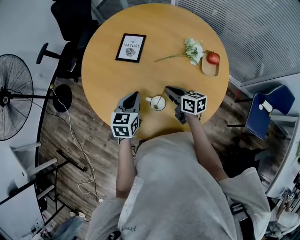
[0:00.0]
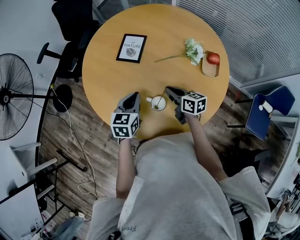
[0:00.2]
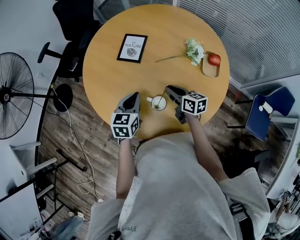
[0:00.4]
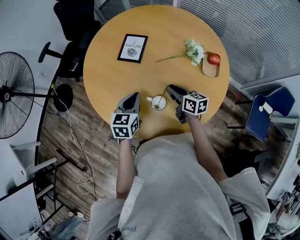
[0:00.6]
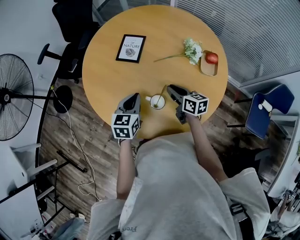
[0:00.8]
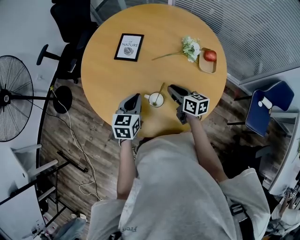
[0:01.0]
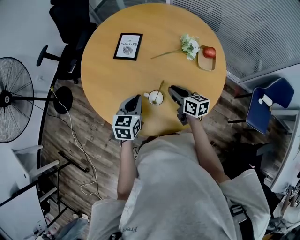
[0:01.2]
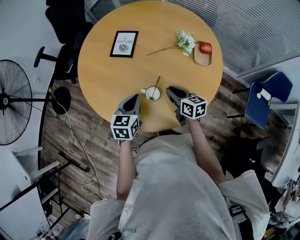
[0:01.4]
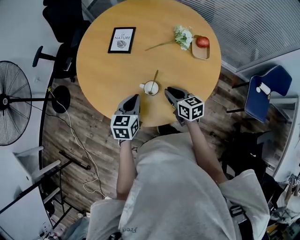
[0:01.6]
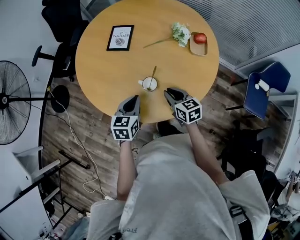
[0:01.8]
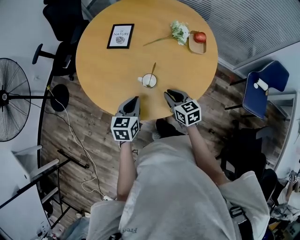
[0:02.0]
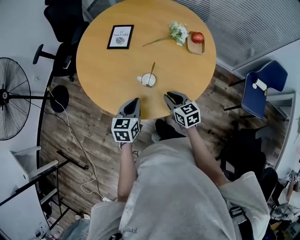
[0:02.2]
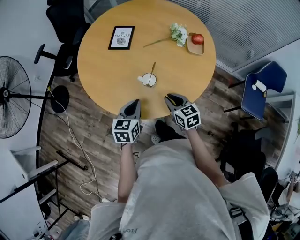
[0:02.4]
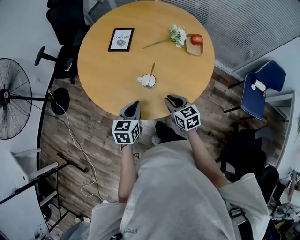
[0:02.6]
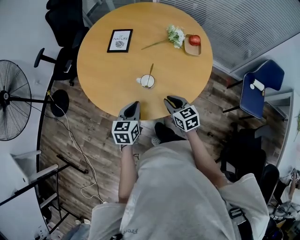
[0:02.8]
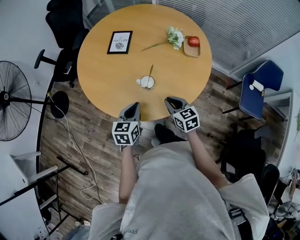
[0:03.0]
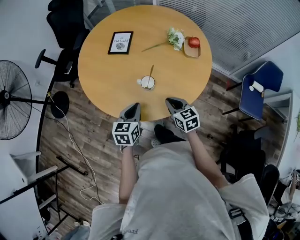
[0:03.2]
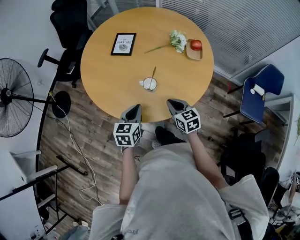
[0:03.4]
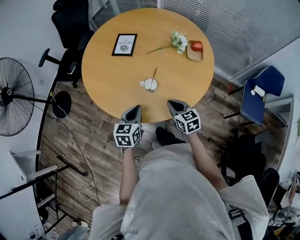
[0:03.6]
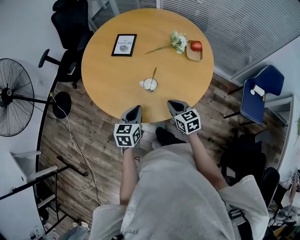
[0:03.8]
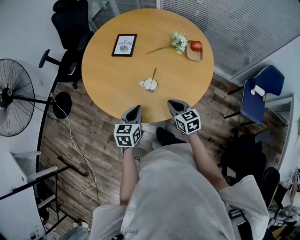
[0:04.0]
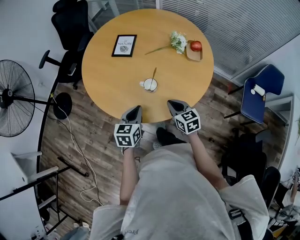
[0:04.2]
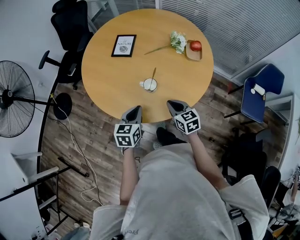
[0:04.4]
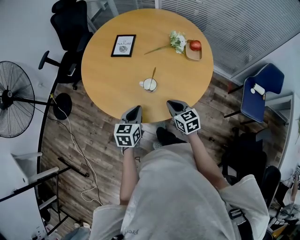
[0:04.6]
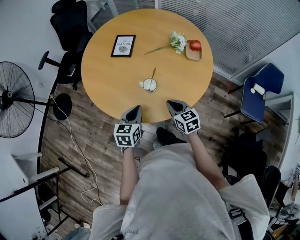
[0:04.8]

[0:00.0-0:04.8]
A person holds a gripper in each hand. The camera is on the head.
0:00.0 to 0:01.6: The grippers both shift backward by about 10 cm.
0:01.6 to 0:03.2: Both grippers travel together backward, about 10 cm.
0:03.2 to 0:04.8: Both grippers stay put.

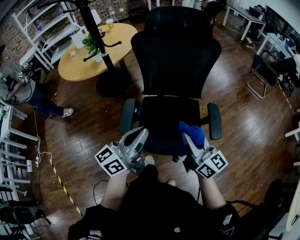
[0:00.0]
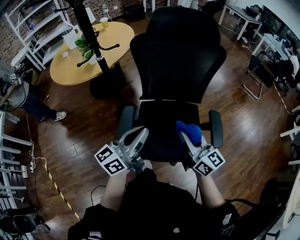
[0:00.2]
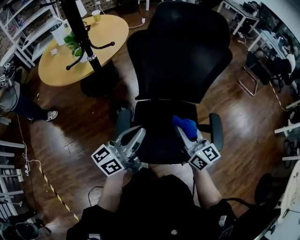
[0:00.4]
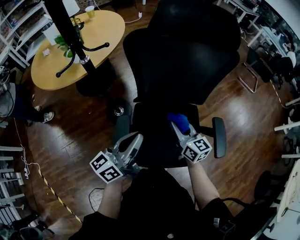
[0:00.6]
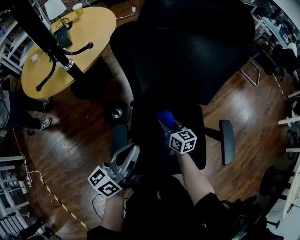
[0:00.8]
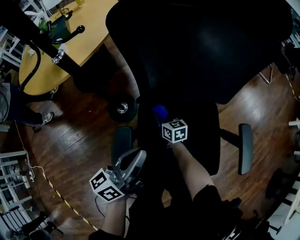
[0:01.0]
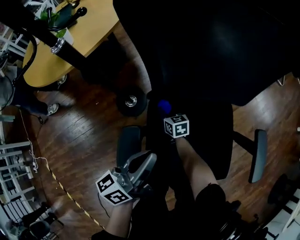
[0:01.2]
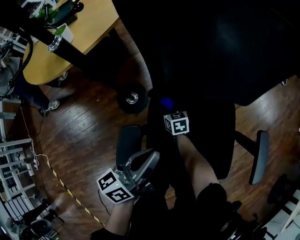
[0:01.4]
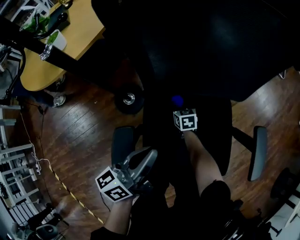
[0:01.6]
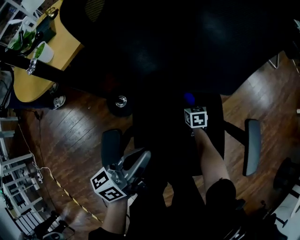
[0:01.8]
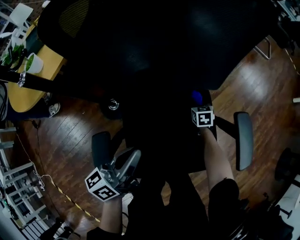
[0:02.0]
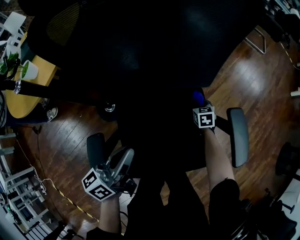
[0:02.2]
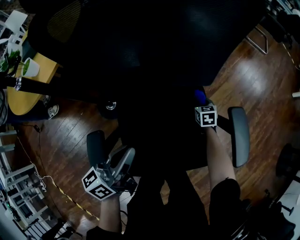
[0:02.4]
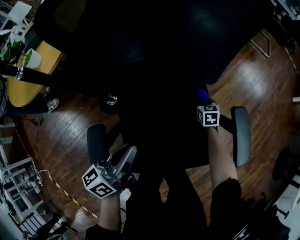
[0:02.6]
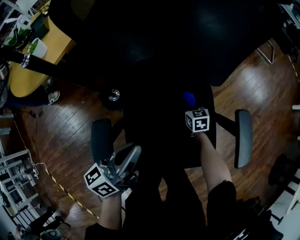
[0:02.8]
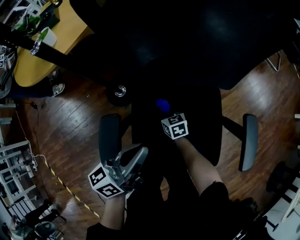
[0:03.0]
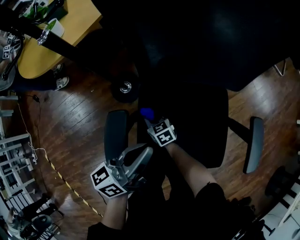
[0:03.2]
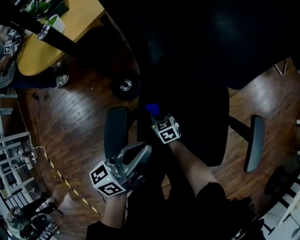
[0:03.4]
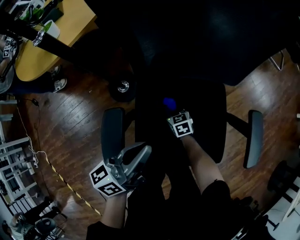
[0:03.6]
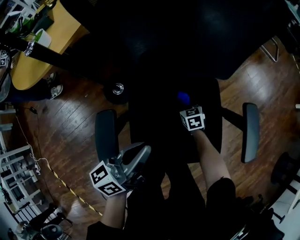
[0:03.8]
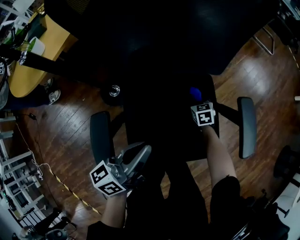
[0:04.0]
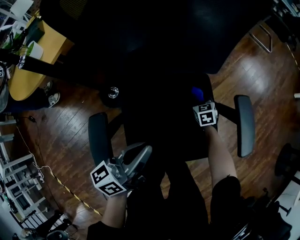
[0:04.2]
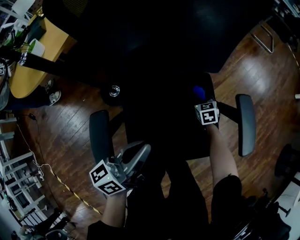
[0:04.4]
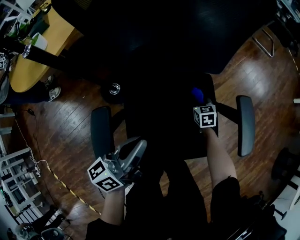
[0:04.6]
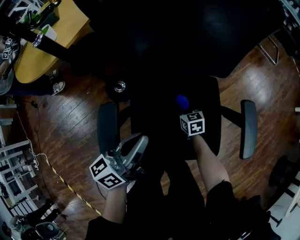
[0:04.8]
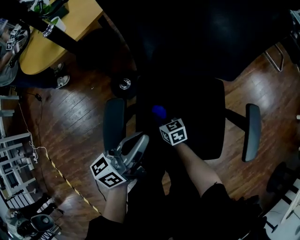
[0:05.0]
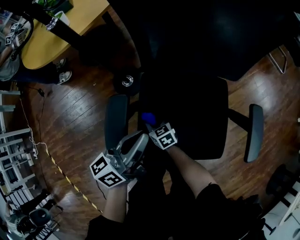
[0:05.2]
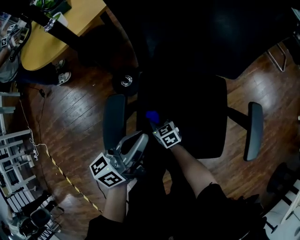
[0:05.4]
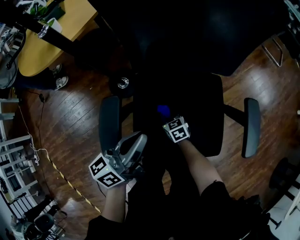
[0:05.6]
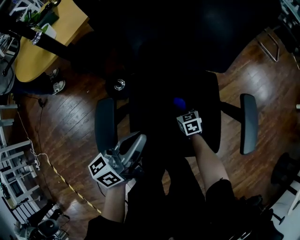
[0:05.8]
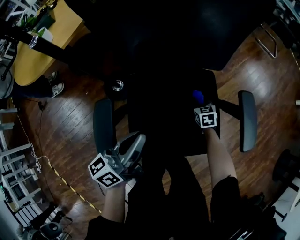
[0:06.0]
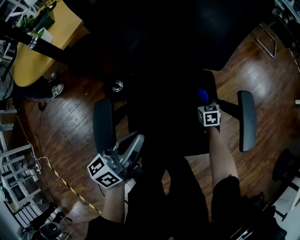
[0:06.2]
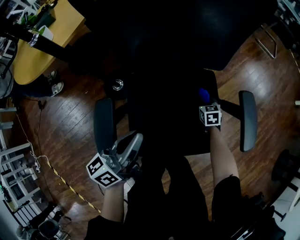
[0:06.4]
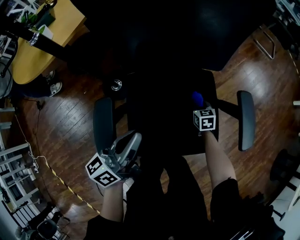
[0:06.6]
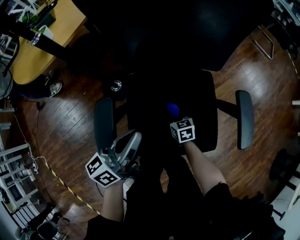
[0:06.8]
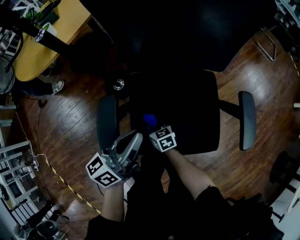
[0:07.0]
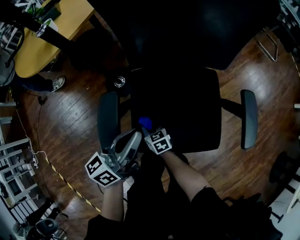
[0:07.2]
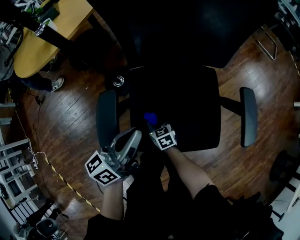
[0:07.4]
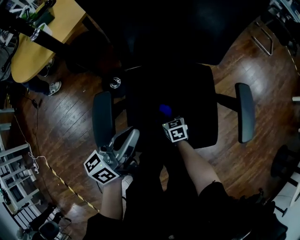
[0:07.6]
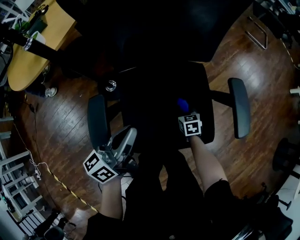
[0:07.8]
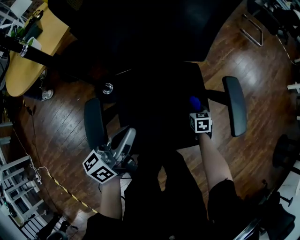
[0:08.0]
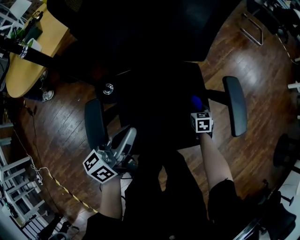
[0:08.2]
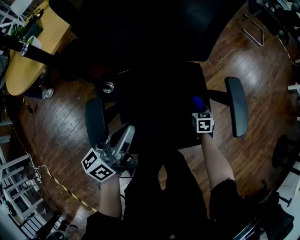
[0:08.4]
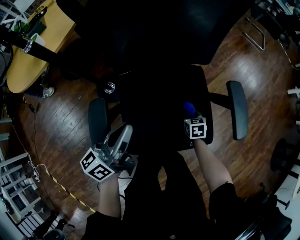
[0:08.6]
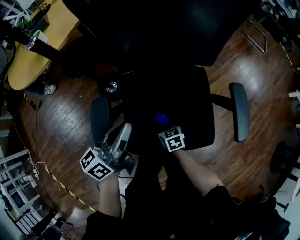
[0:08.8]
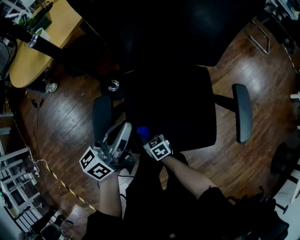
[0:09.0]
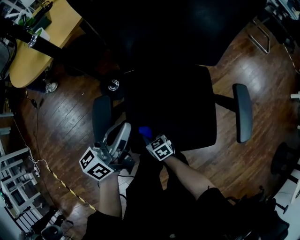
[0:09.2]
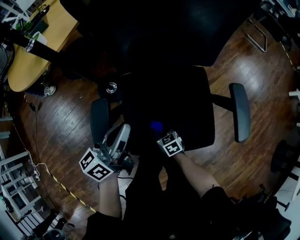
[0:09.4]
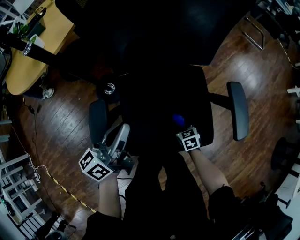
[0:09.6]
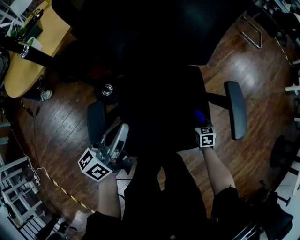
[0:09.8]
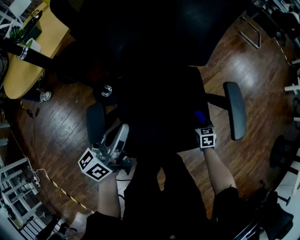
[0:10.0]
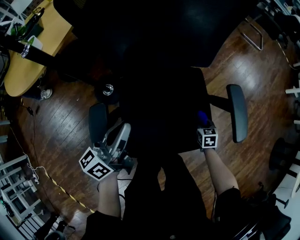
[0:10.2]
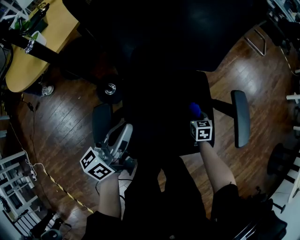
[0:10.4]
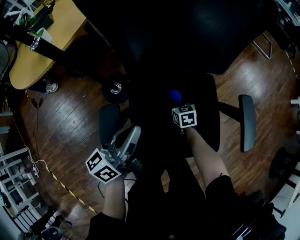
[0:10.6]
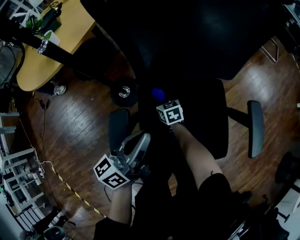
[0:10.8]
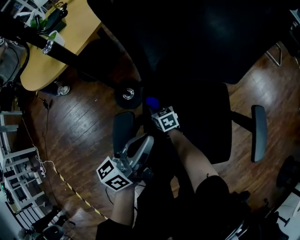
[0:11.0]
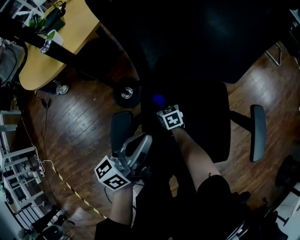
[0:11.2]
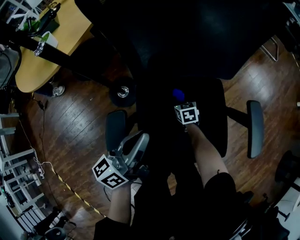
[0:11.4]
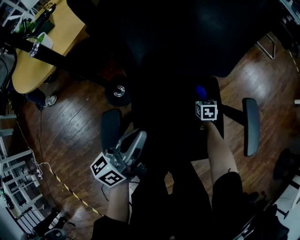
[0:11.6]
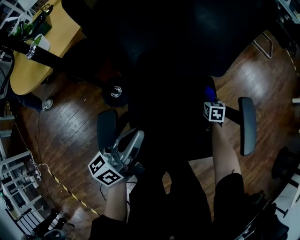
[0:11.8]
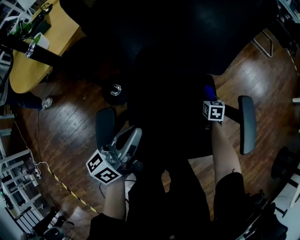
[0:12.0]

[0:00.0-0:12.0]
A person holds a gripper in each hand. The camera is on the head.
0:00.0 to 0:01.6: The right gripper goes some 60 cm downward and forward, and tilts its fingers about 50 degrees downward, while the left gripper heads forward and downward, covering approximately 30 cm, and rotates roughly 20 degrees.
0:01.6 to 0:03.0: The left gripper shifts by approximately 5 cm. The right gripper travels backward by some 10 cm, and reaches about 30 cm to the right, then returns.
0:03.0 to 0:04.4: The right gripper shifts by approximately 25 cm, and rotates some 20 degrees.
0:06.0 to 0:07.6: The right gripper goes about 20 cm to the left and backward.
0:09.0 to 0:10.4: The right gripper moves some 30 cm, and rotates some 30 degrees.

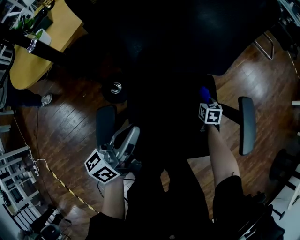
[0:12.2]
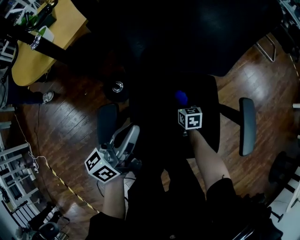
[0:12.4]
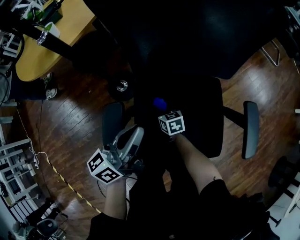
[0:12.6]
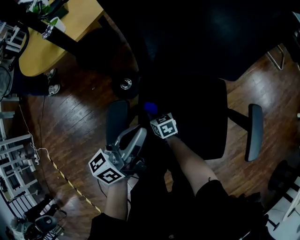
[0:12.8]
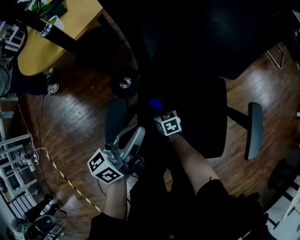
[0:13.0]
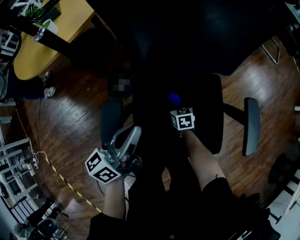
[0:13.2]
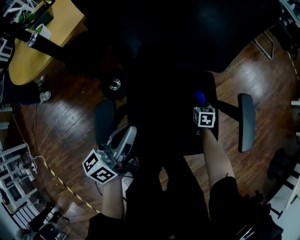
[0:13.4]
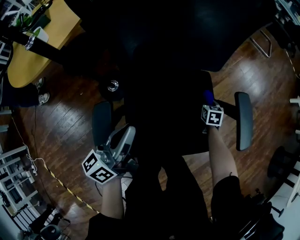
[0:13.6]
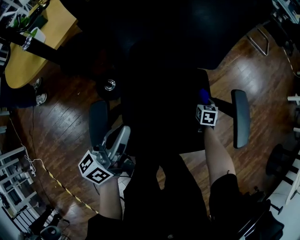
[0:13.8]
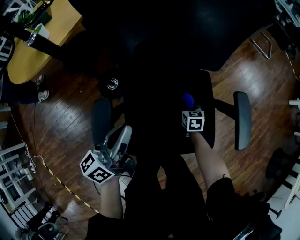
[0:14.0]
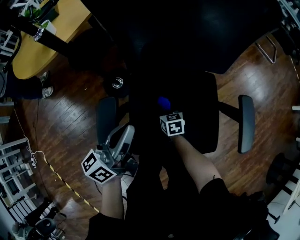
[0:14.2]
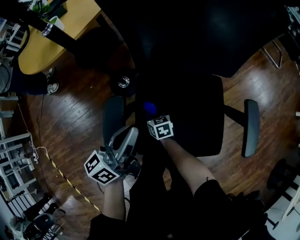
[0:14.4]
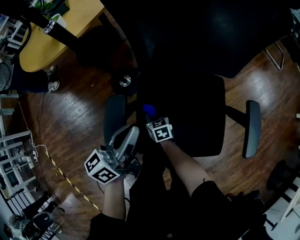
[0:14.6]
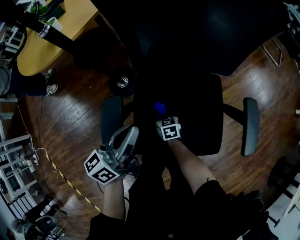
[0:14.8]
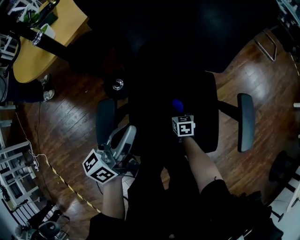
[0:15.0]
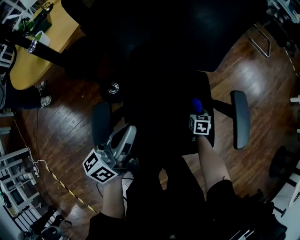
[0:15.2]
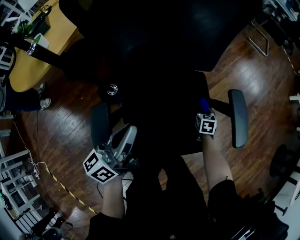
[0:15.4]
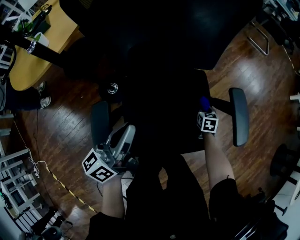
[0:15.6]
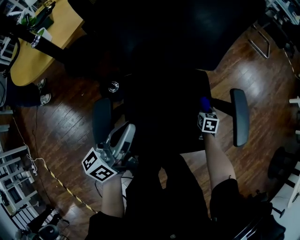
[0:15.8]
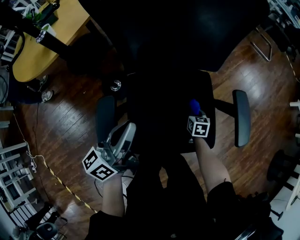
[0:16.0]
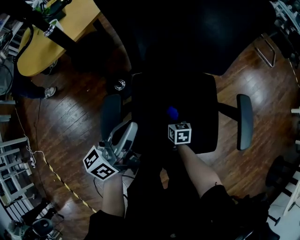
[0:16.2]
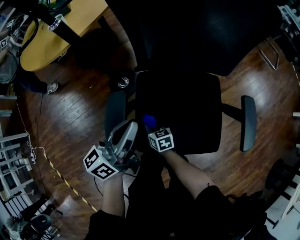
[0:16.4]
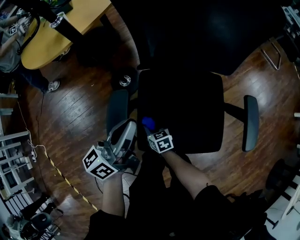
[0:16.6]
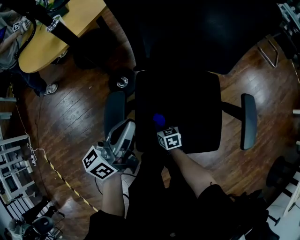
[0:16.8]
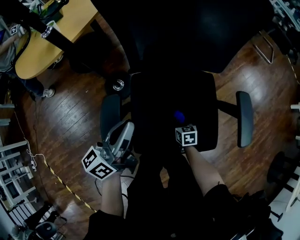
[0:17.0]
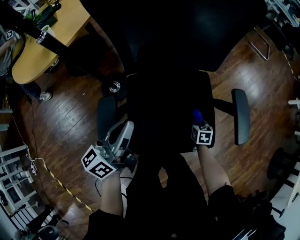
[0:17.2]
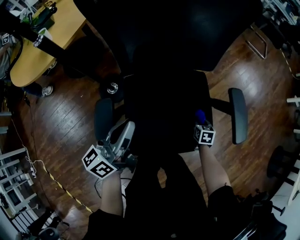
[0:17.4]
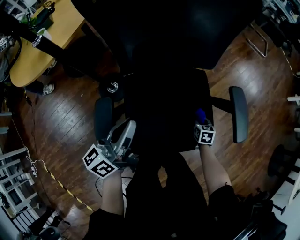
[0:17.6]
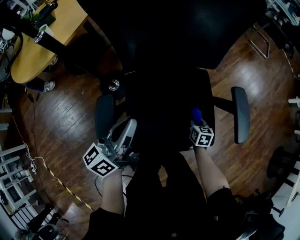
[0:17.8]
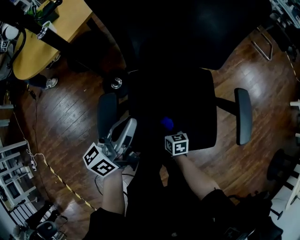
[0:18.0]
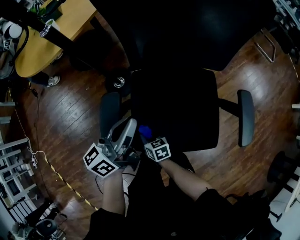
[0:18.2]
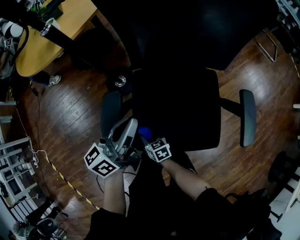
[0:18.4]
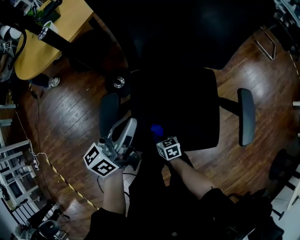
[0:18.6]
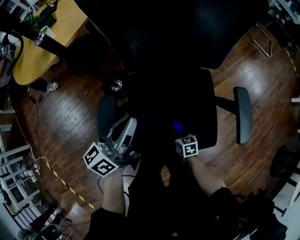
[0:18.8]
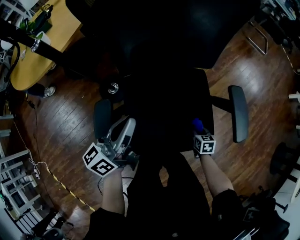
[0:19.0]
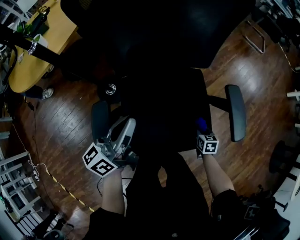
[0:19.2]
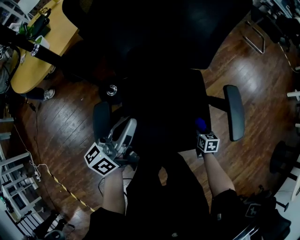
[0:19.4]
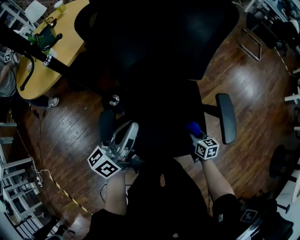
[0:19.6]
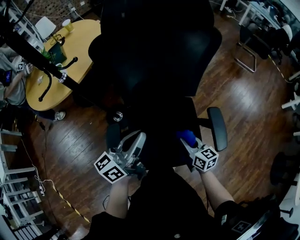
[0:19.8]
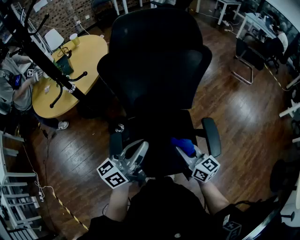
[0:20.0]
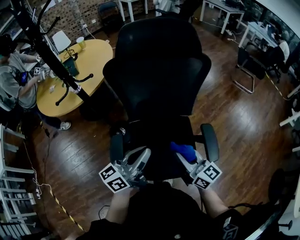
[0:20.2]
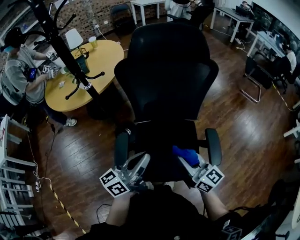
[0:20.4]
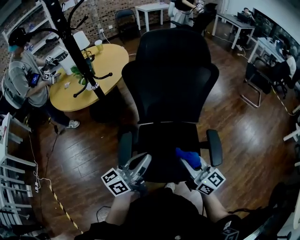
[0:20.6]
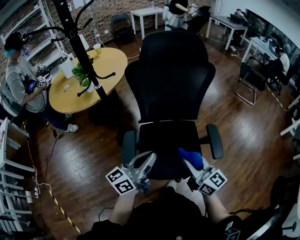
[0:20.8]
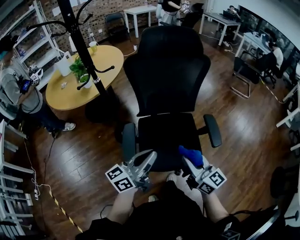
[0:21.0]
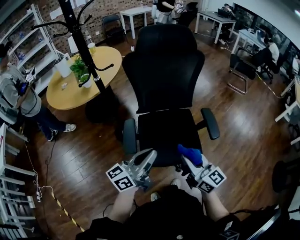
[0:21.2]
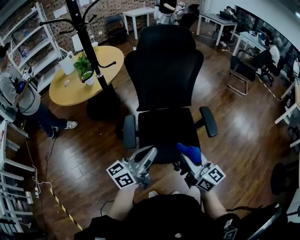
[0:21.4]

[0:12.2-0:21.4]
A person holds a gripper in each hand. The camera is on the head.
0:15.2 to 0:16.8: The right gripper ends up approximately 30 cm from where it was, and swivels about 30 degrees, while the left gripper changes place by roughly 5 cm.
0:18.4 to 0:19.8: The left gripper is displaced upward by approximately 10 cm. The right gripper shifts by roughly 35 cm, and changes its angle by some 30 degrees.
0:19.8 to 0:21.4: The left gripper moves backward, about 25 cm, while the right gripper shifts some 35 cm upward and backward, and turns by about 30 degrees.
